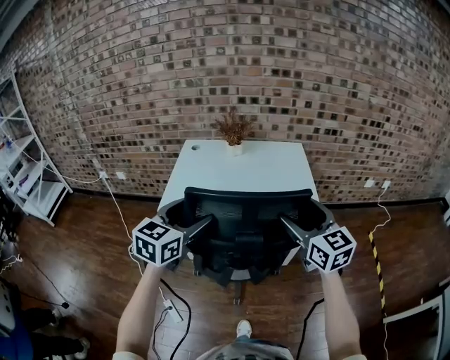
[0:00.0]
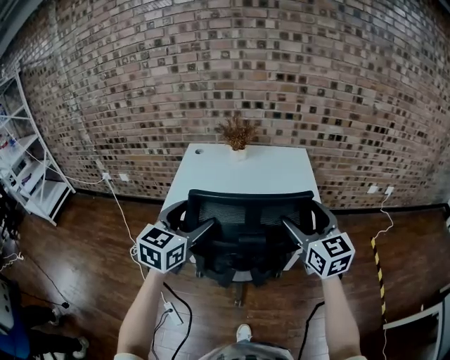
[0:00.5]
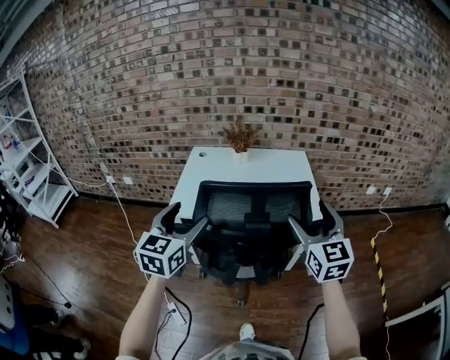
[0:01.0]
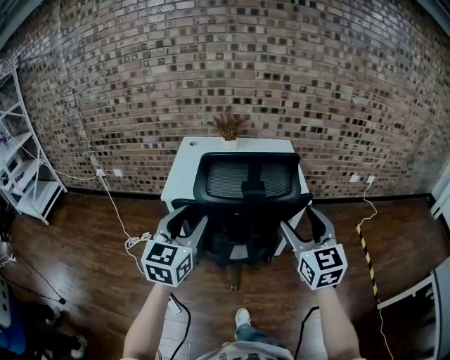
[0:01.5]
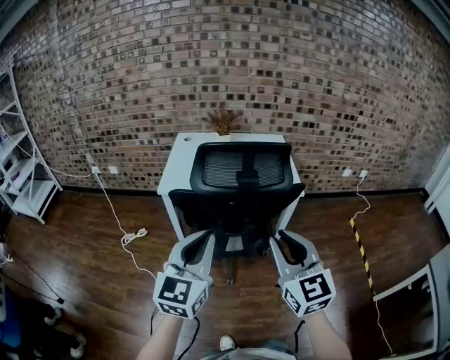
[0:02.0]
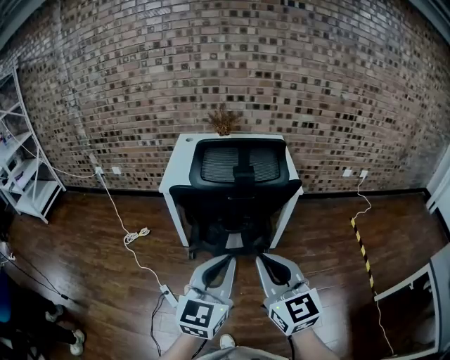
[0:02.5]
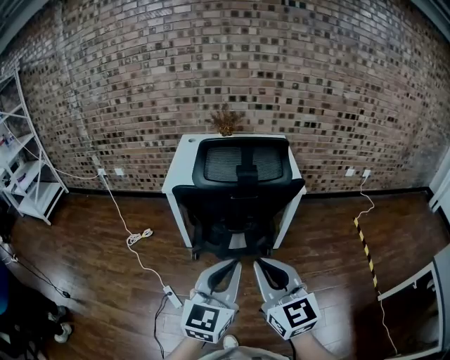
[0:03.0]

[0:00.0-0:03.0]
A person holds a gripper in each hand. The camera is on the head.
0:00.0 to 0:01.5: Both grippers move backward, about 15 cm. The left gripper closes.
0:01.5 to 0:03.0: The right gripper moves backward and to the left, some 20 cm, and closes, while the left gripper travels backward and to the right by about 20 cm, and closes.

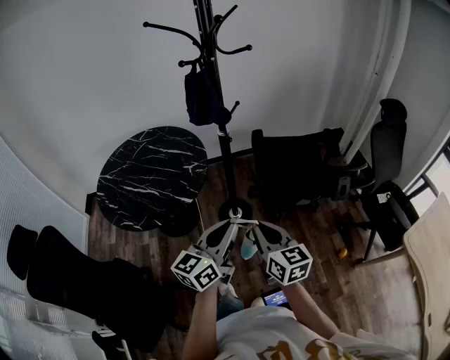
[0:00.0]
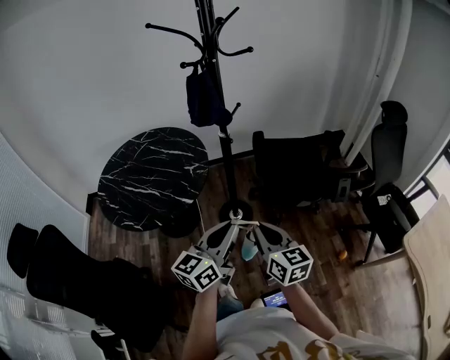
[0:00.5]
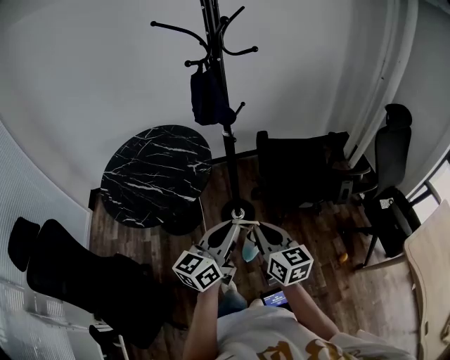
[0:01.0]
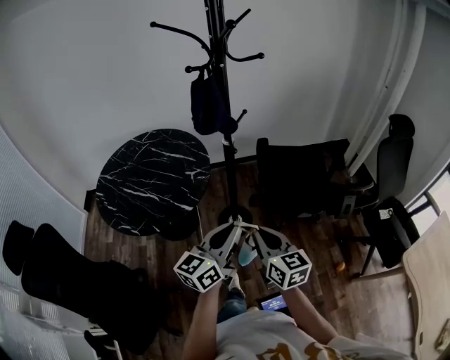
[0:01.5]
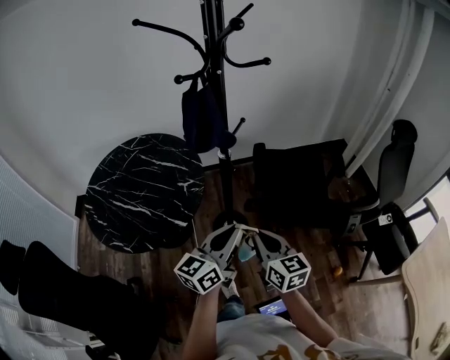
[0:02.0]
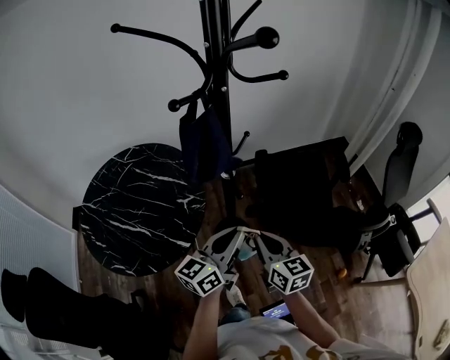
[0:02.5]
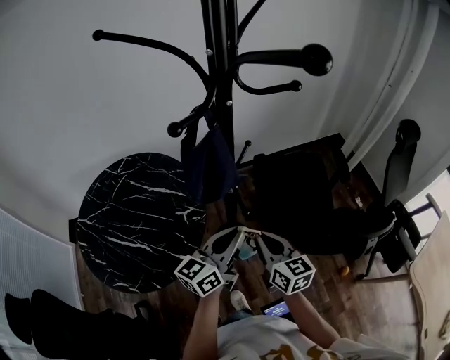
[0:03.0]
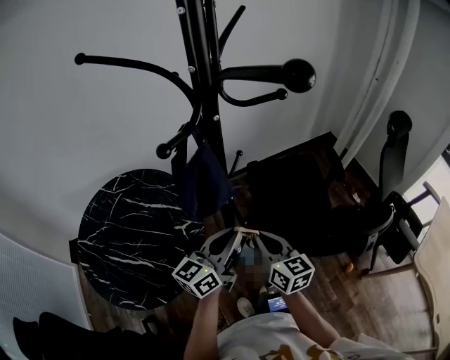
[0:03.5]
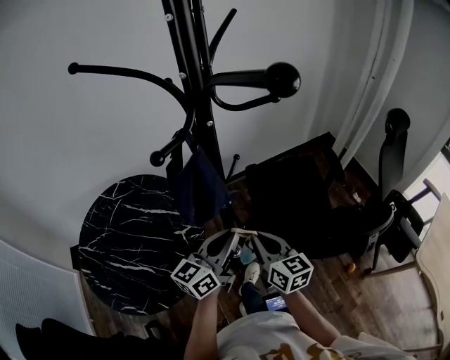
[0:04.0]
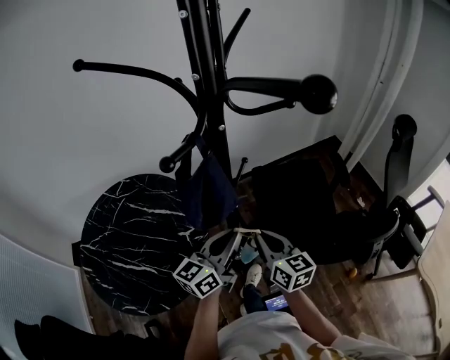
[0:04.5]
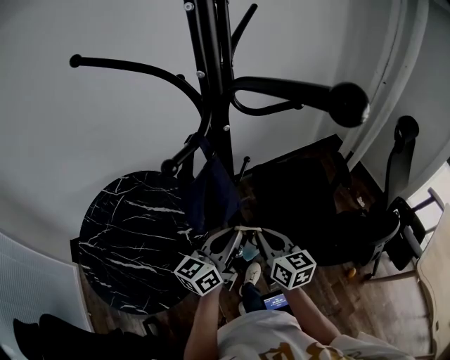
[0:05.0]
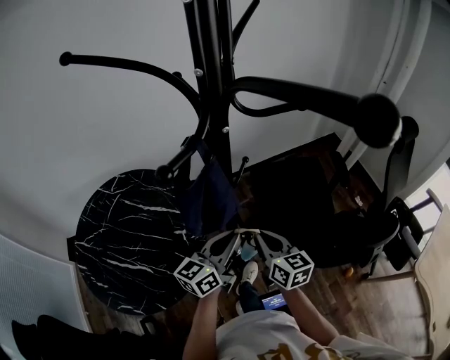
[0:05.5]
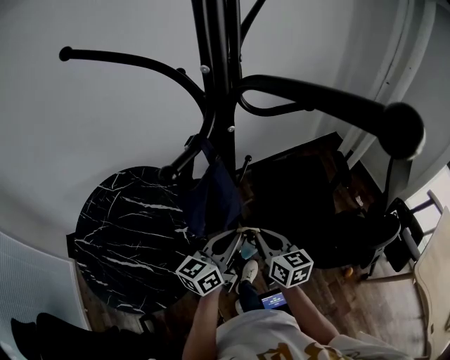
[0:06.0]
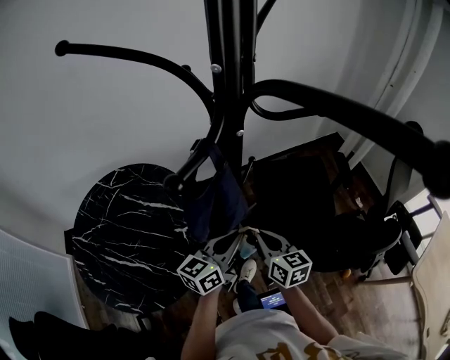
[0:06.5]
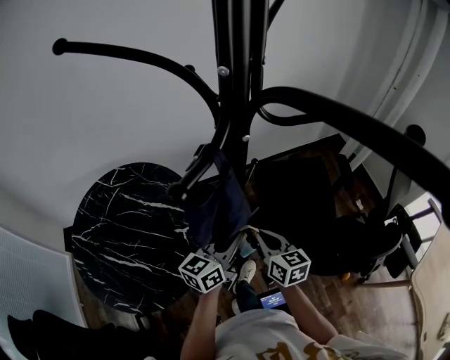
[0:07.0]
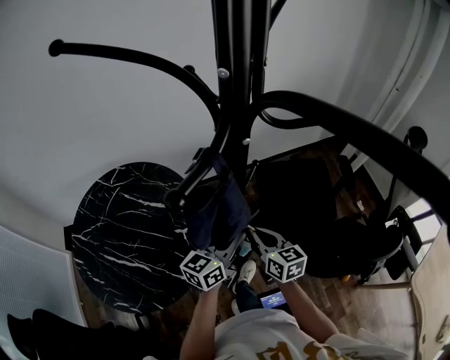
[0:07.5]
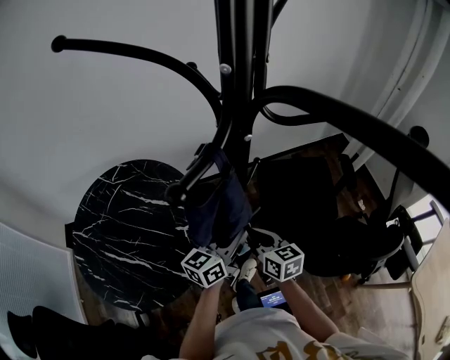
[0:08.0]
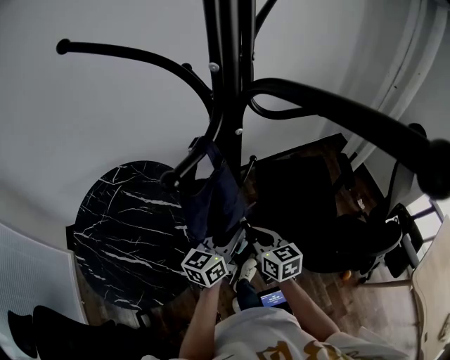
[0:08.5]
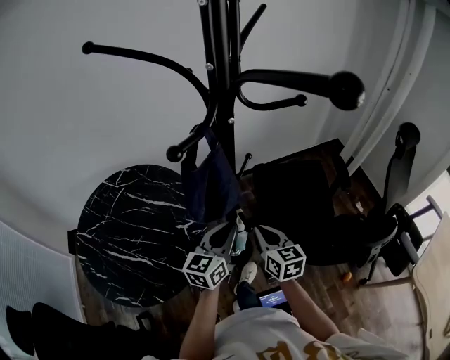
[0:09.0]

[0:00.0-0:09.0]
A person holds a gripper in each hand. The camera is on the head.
0:00.0 to 0:02.0: The grippers both shift forward by approximately 15 cm.
0:02.0 to 0:04.5: Both grippers travel together forward, roughly 20 cm.
0:04.5 to 0:07.0: Both grippers move downward, some 5 cm.
0:07.0 to 0:09.0: There are only small adjustments of the grippers.

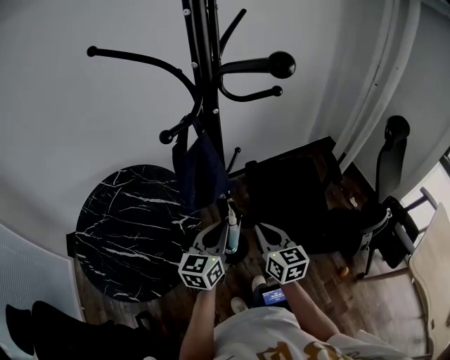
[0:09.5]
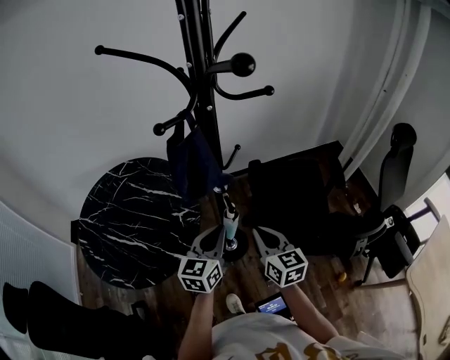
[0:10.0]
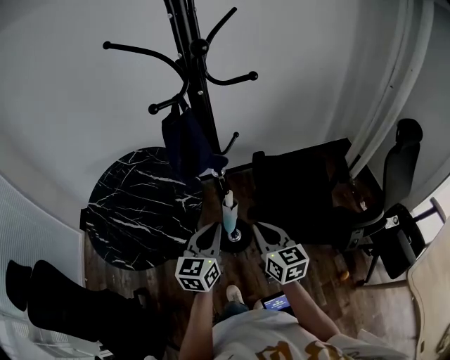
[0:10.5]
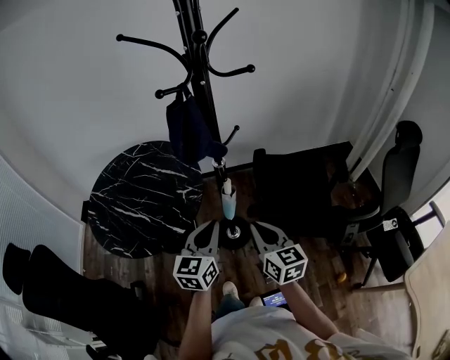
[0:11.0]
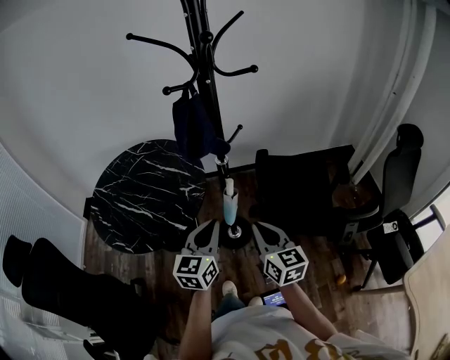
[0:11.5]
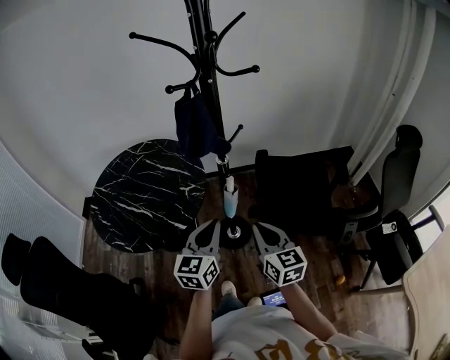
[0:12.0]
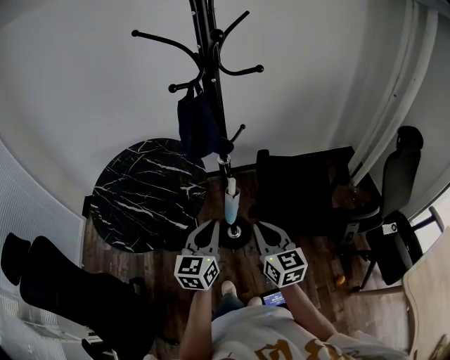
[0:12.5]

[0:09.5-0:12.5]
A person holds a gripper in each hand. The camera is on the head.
0:09.5 to 0:11.0: The grippers both shift backward by some 15 cm.
0:11.0 to 0:12.5: The grippers move only a little.

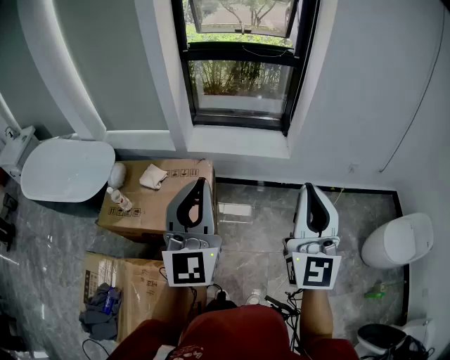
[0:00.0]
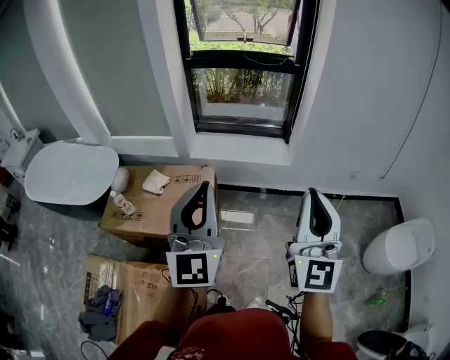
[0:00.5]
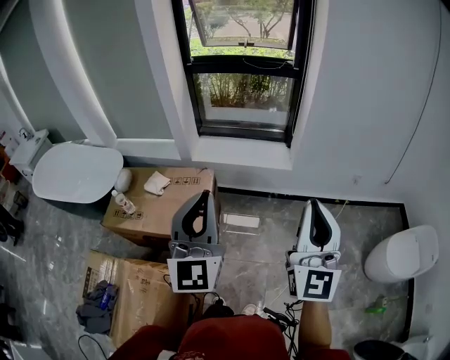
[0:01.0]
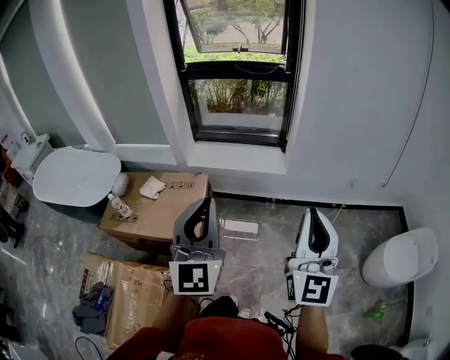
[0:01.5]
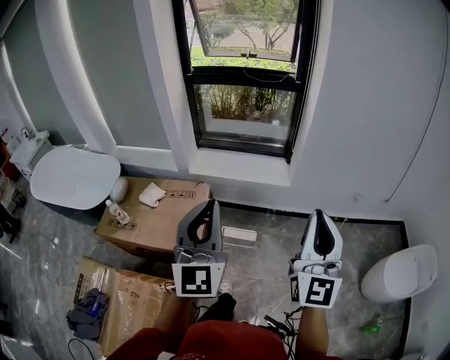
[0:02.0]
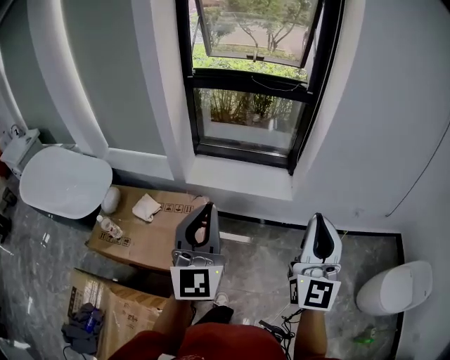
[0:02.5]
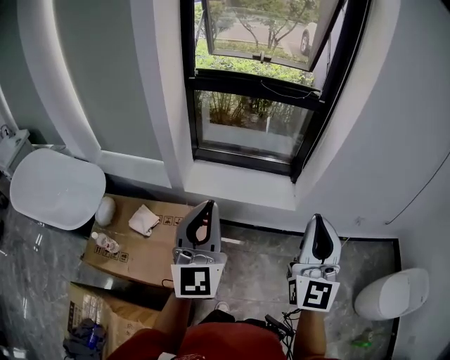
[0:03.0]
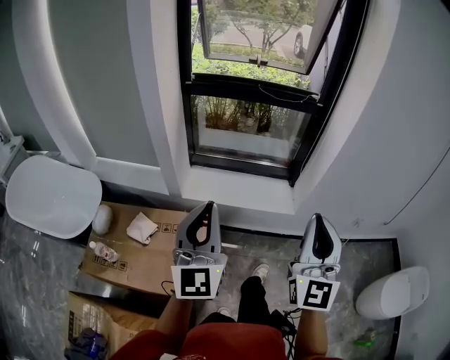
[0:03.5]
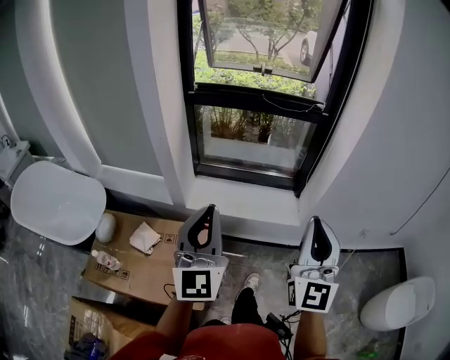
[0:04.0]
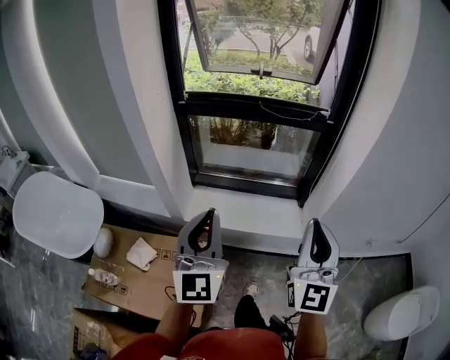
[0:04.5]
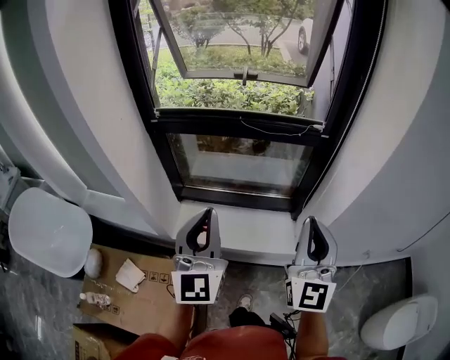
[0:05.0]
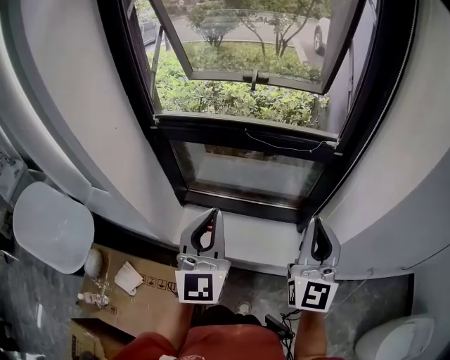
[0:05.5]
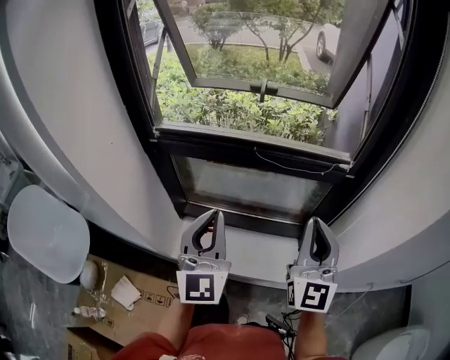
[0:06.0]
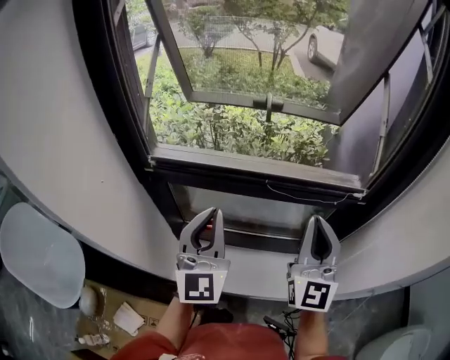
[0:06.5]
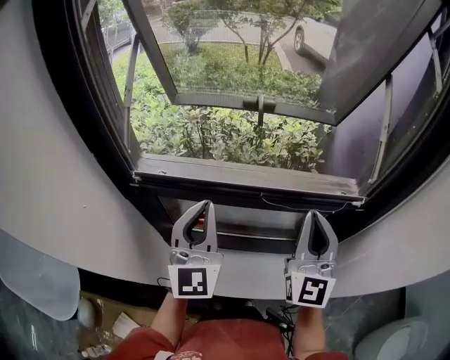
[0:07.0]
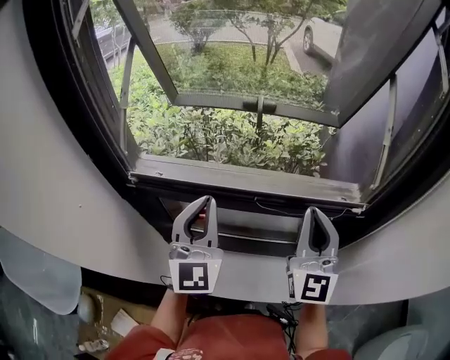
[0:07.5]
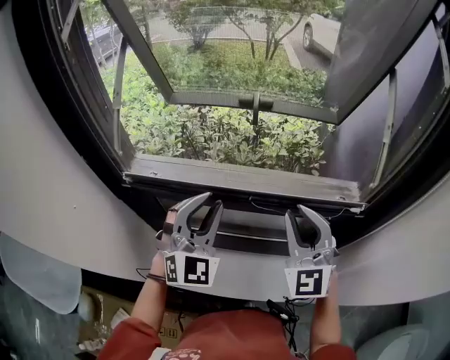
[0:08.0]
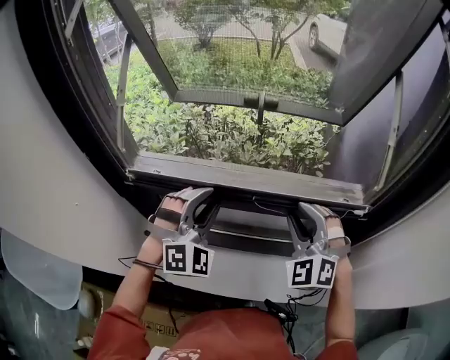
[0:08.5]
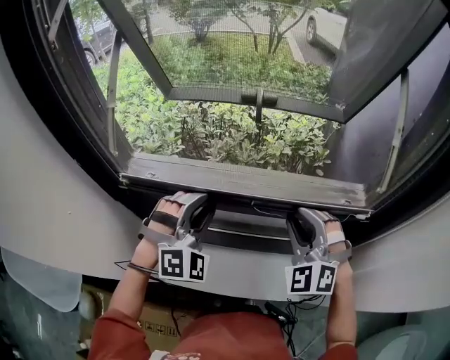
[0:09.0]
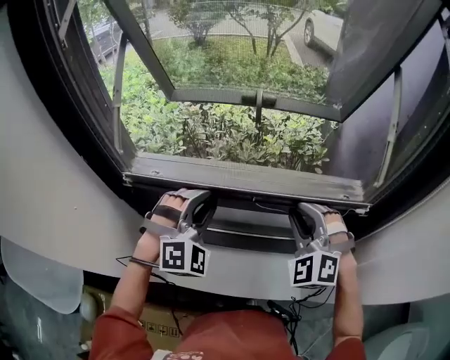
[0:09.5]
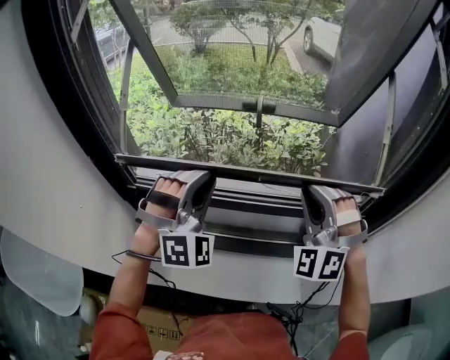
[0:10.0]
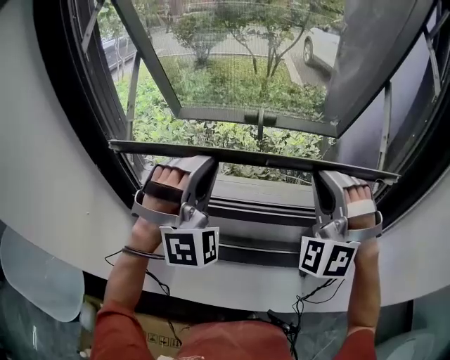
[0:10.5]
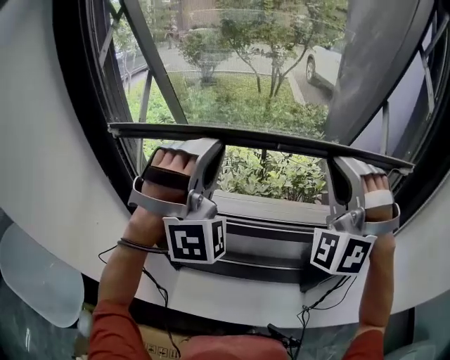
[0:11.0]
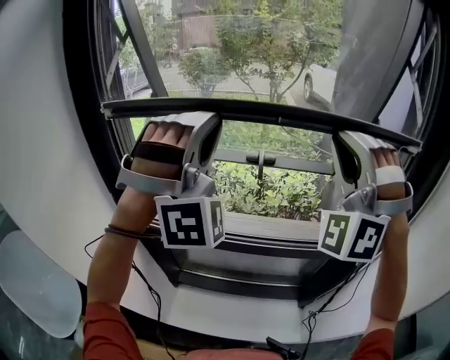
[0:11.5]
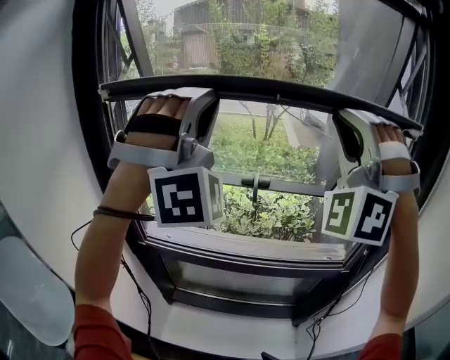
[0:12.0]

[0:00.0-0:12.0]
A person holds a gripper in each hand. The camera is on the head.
0:00.0 to 0:02.0: The two grippers go roughly 10 cm to the right.
0:02.0 to 0:04.0: The grippers both shift forward and to the left by roughly 30 cm.
0:04.0 to 0:06.0: Both grippers move forward, approximately 40 cm.
0:06.0 to 0:08.0: The two grippers go some 20 cm forward. The left gripper changes its angle by some 40 degrees. Meanwhile the right gripper swivels about 30 degrees.
0:08.0 to 0:10.0: The left gripper changes place by approximately 5 cm, and swivels approximately 30 degrees; the right gripper rotates around the line of its fingers by roughly 40 degrees, counterclockwise from behind.
0:10.0 to 0:12.0: The two grippers go approximately 35 cm upward. The right gripper rotates roughly 30 degrees, while the left gripper rotates roughly 40 degrees.
